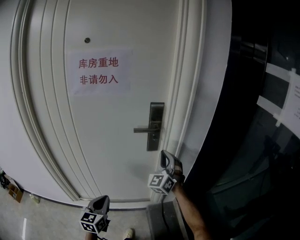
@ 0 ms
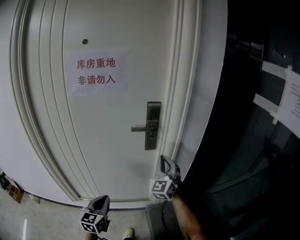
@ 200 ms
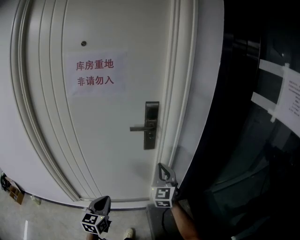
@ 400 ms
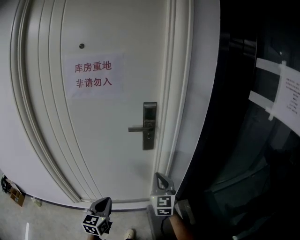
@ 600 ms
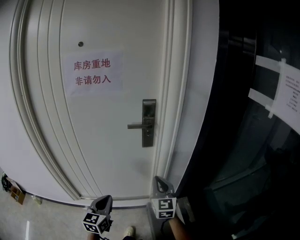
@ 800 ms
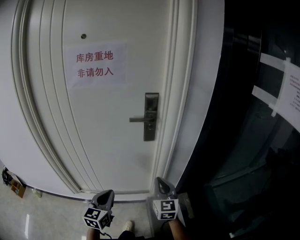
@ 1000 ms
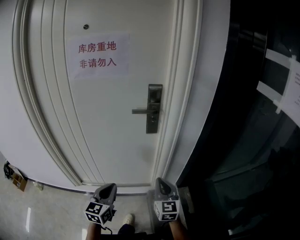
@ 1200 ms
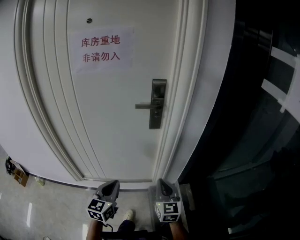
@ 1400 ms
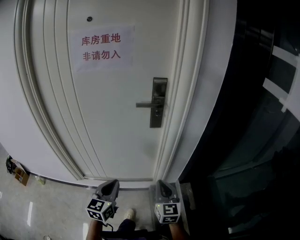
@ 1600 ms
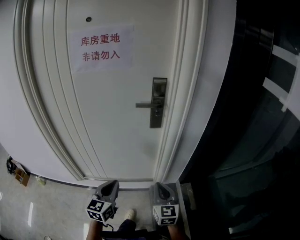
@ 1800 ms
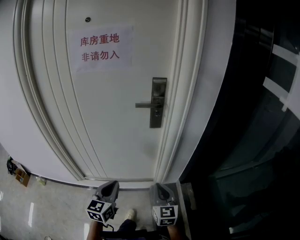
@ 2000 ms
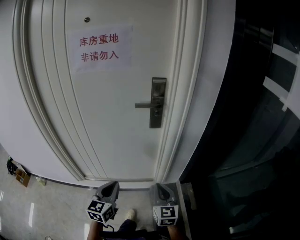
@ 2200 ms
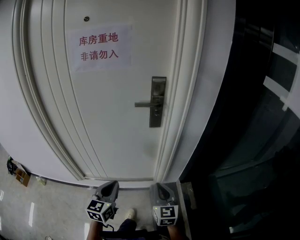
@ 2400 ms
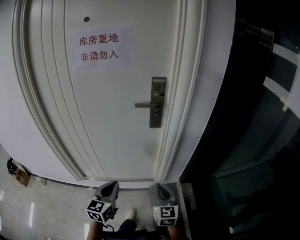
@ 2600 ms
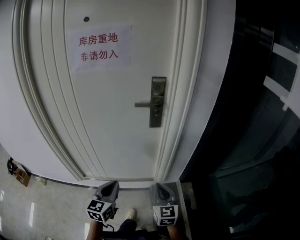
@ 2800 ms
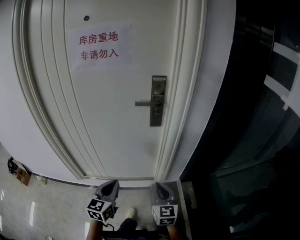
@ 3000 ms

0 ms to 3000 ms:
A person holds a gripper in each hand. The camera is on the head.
0 ms to 1600 ms: The right gripper is displaced backward and downward by about 25 cm, and twists approximately 50 degrees clockwise, seen from behind; the left gripper is displaced to the right by roughly 5 cm.
1600 ms to 3000 ms: There are only small adjustments of the grippers.

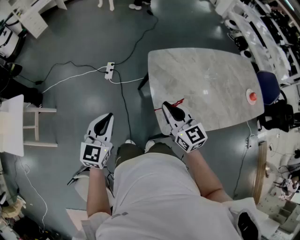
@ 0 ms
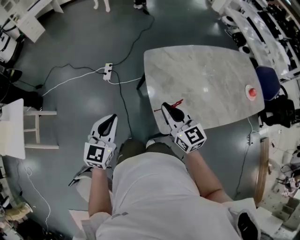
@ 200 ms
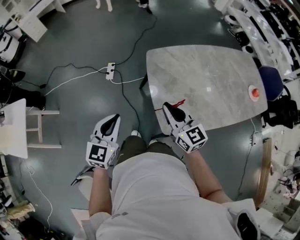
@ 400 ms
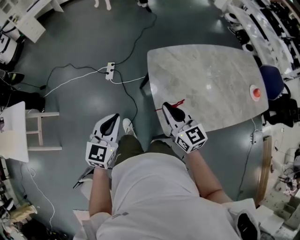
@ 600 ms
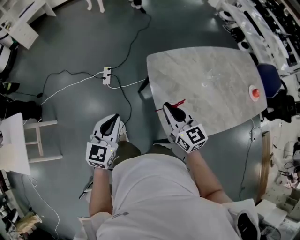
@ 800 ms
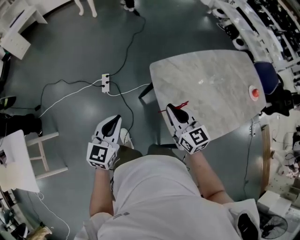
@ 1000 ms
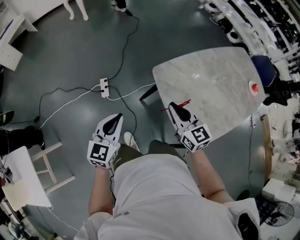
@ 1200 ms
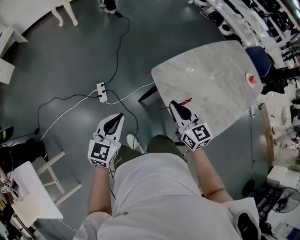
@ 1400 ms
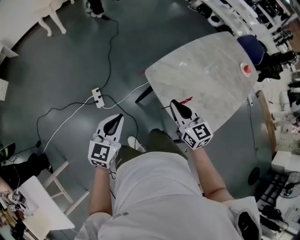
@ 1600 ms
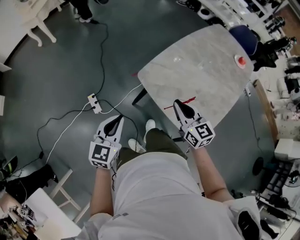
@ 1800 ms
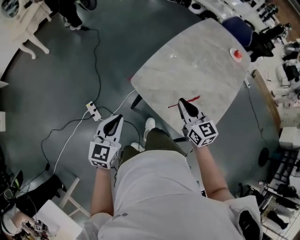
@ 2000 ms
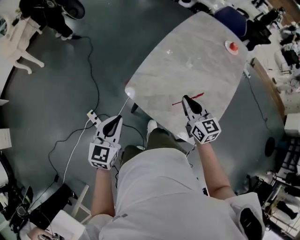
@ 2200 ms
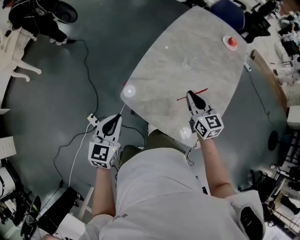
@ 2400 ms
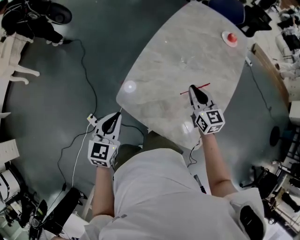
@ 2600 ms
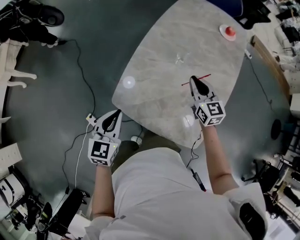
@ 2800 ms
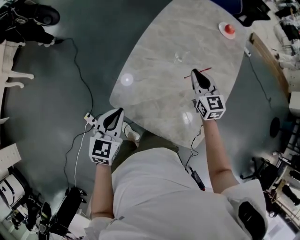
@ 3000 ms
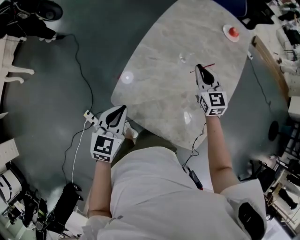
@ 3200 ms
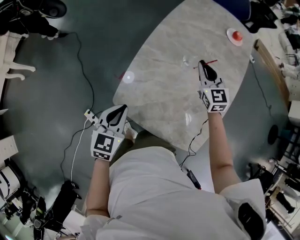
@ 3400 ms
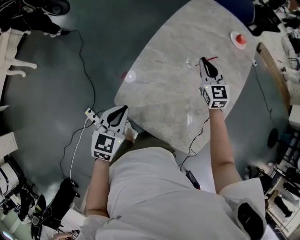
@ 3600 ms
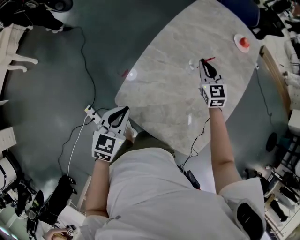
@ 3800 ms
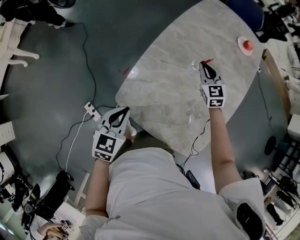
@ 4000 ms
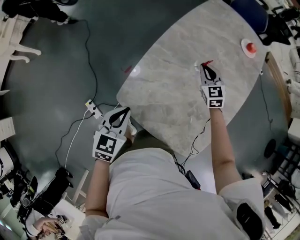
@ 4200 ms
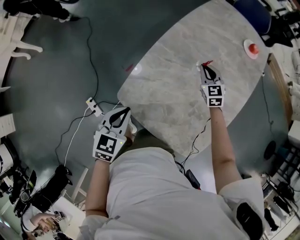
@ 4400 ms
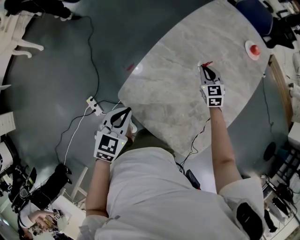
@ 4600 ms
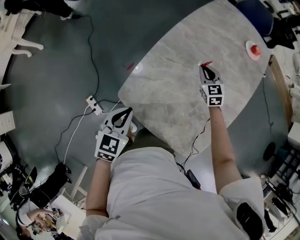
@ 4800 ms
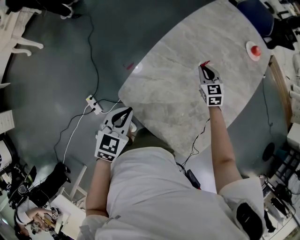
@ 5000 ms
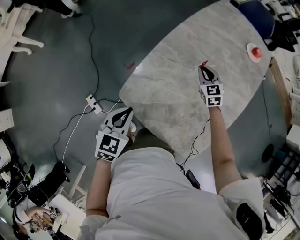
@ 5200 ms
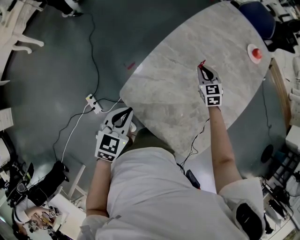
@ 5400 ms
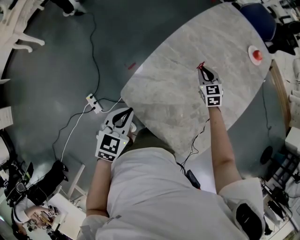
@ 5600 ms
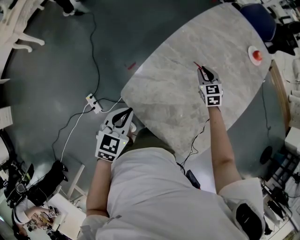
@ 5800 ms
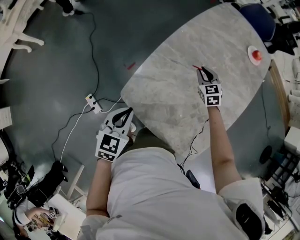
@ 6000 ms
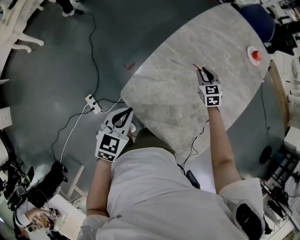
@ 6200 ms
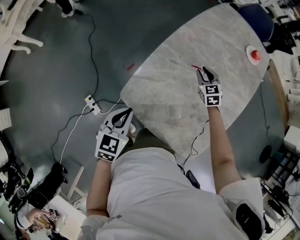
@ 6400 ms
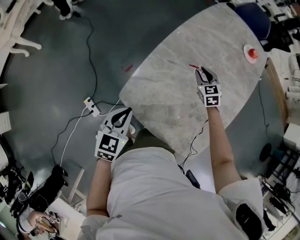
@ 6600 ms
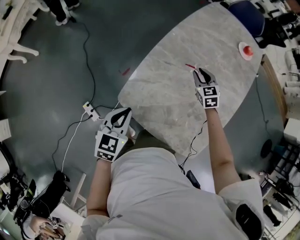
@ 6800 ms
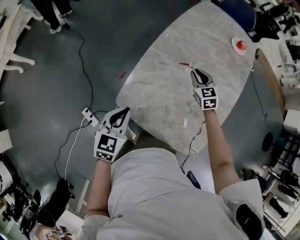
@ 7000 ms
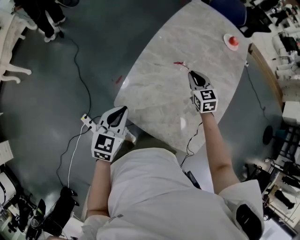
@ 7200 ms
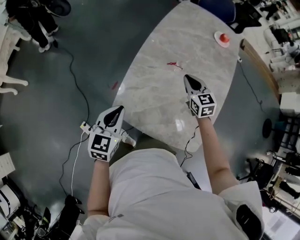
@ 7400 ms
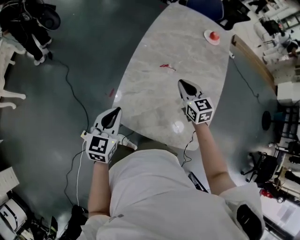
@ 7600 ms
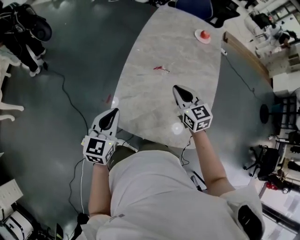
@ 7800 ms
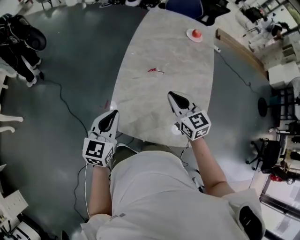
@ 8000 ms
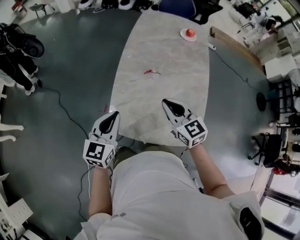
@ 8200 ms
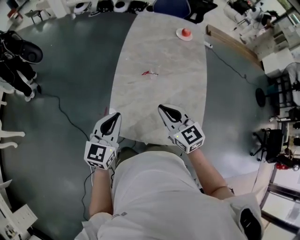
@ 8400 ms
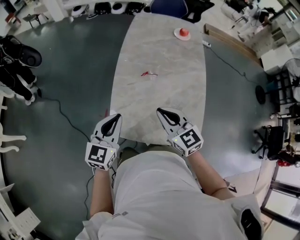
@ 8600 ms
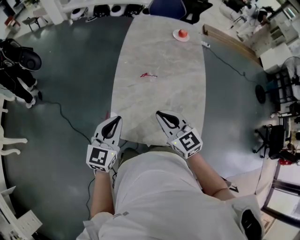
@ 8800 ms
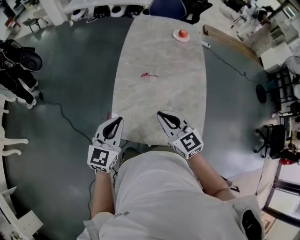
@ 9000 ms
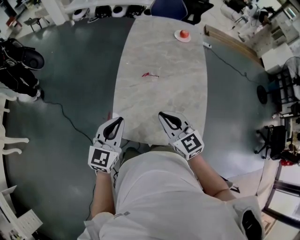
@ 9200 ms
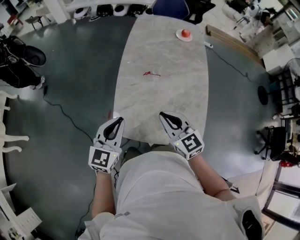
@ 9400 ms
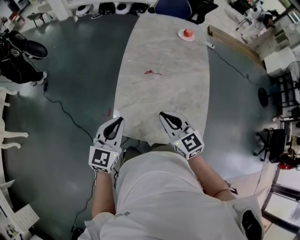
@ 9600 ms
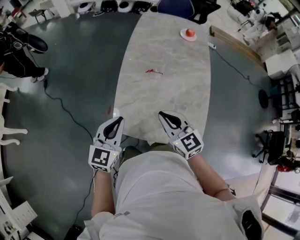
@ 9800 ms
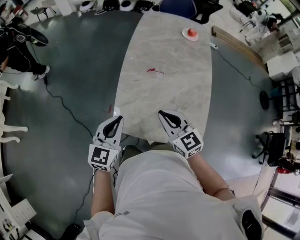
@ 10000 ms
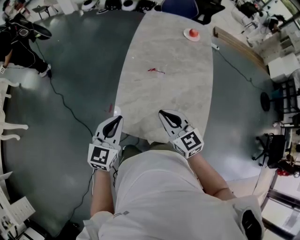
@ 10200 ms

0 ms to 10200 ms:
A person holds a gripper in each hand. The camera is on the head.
0 ms to 1400 ms: The right gripper shifts roughly 25 cm forward and to the left, and rotates about 20 degrees, while the left gripper is displaced forward by approximately 30 cm, and changes its angle by approximately 30 degrees.
1400 ms to 3000 ms: The right gripper changes place by about 40 cm, and turns by about 40 degrees, while the left gripper ends up roughly 35 cm from where it was, and changes its angle by roughly 30 degrees.
3000 ms to 4400 ms: The right gripper moves forward and downward, about 15 cm, and turns by some 20 degrees.
4400 ms to 5800 ms: There are only small adjustments of the grippers.
5800 ms to 7200 ms: The right gripper travels upward and backward by approximately 10 cm.
7200 ms to 8800 ms: The right gripper travels backward and upward by roughly 25 cm, while the left gripper goes some 10 cm upward, and rotates some 30 degrees.
8800 ms to 10200 ms: The grippers make only small movements.

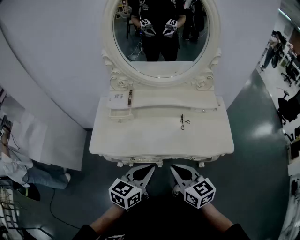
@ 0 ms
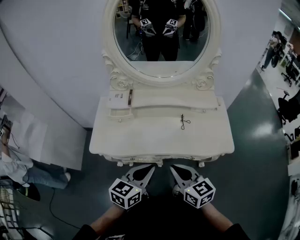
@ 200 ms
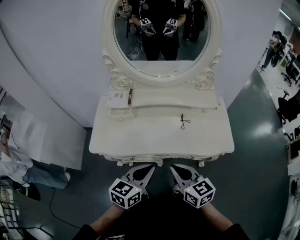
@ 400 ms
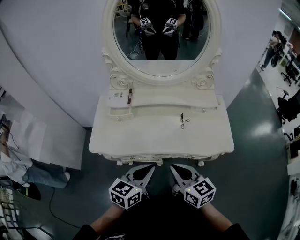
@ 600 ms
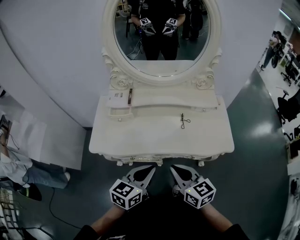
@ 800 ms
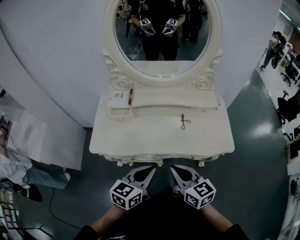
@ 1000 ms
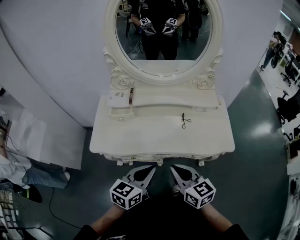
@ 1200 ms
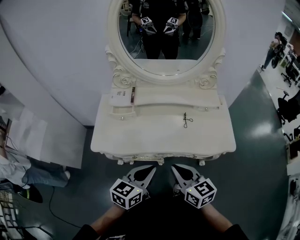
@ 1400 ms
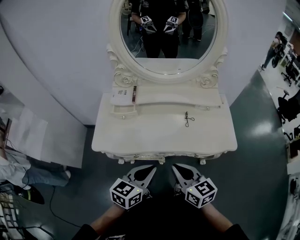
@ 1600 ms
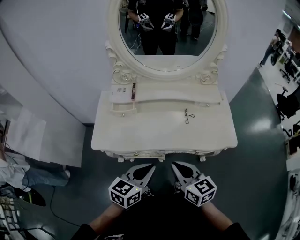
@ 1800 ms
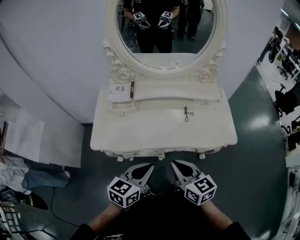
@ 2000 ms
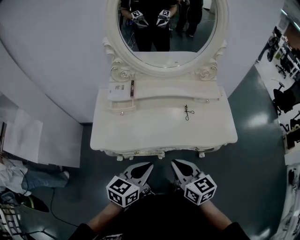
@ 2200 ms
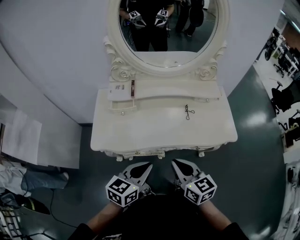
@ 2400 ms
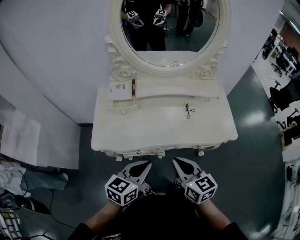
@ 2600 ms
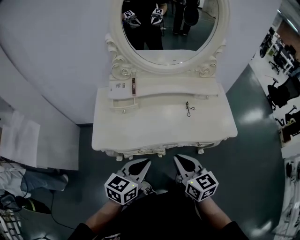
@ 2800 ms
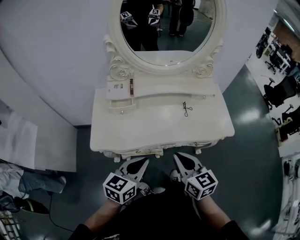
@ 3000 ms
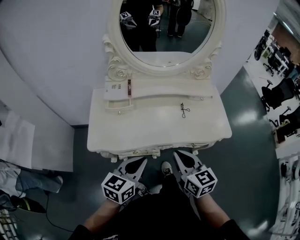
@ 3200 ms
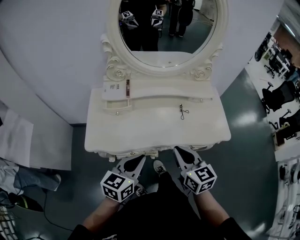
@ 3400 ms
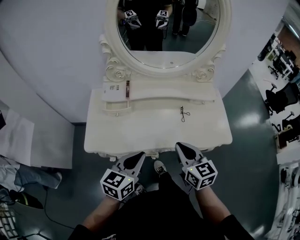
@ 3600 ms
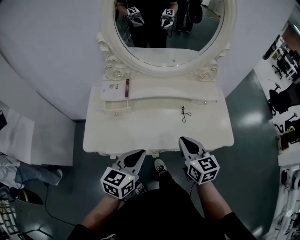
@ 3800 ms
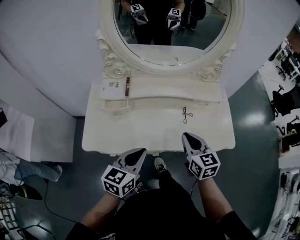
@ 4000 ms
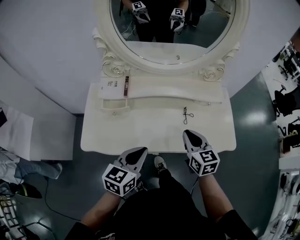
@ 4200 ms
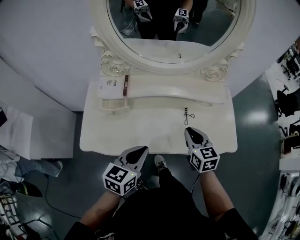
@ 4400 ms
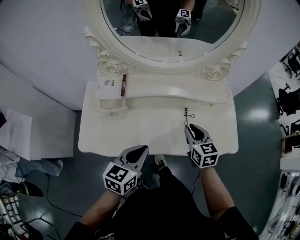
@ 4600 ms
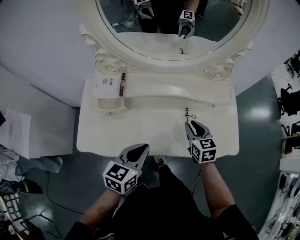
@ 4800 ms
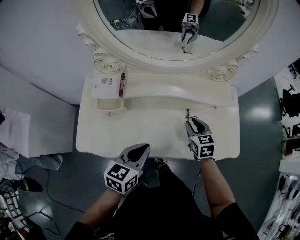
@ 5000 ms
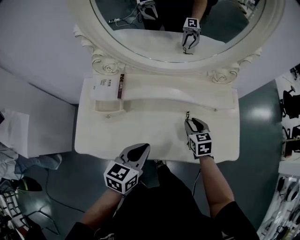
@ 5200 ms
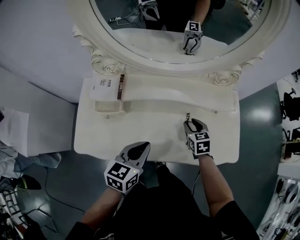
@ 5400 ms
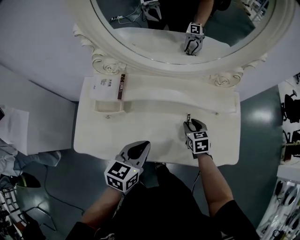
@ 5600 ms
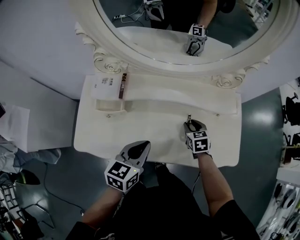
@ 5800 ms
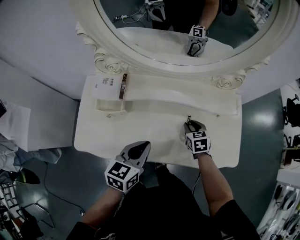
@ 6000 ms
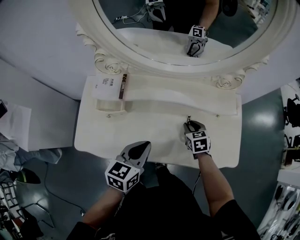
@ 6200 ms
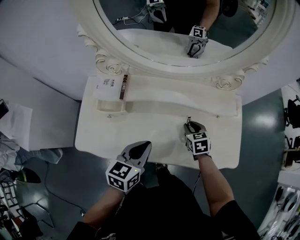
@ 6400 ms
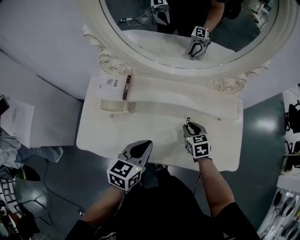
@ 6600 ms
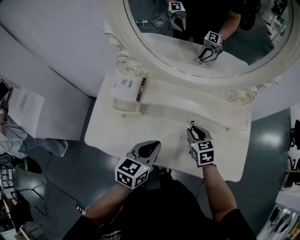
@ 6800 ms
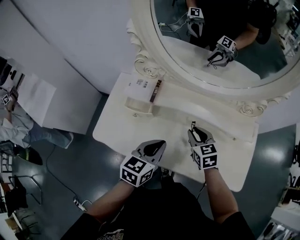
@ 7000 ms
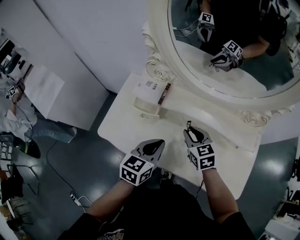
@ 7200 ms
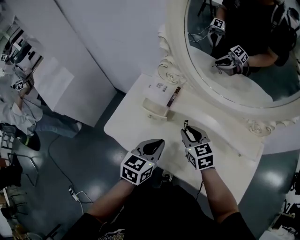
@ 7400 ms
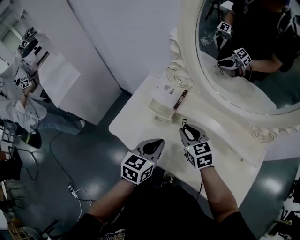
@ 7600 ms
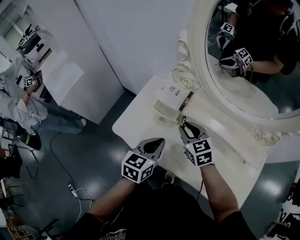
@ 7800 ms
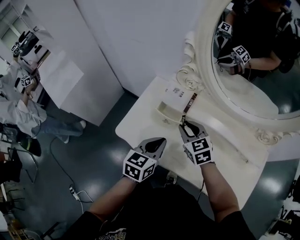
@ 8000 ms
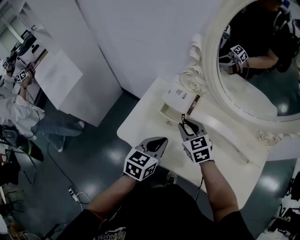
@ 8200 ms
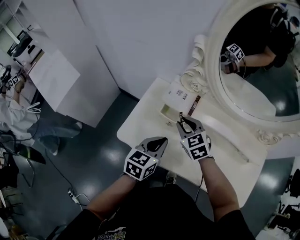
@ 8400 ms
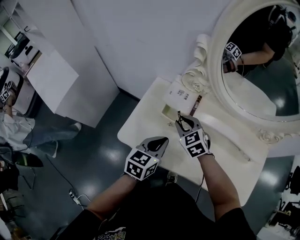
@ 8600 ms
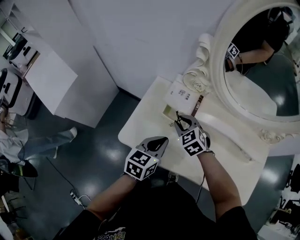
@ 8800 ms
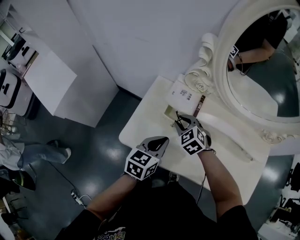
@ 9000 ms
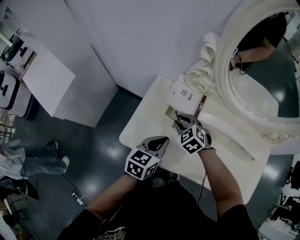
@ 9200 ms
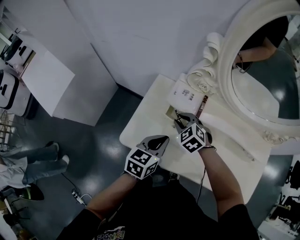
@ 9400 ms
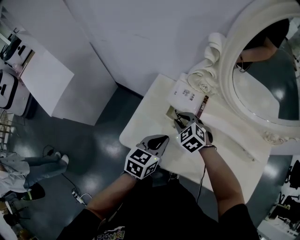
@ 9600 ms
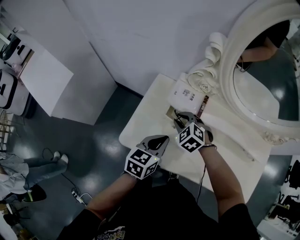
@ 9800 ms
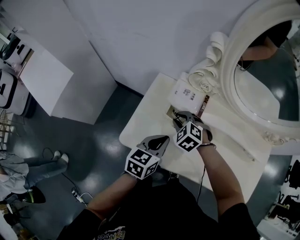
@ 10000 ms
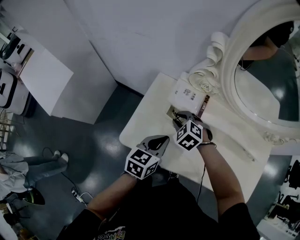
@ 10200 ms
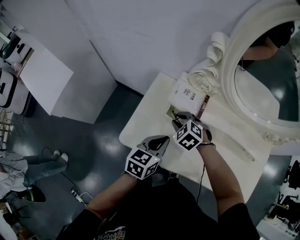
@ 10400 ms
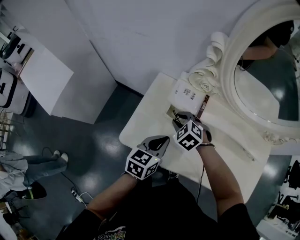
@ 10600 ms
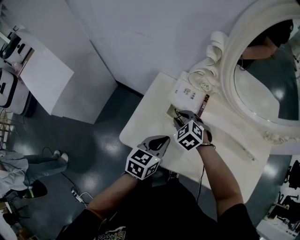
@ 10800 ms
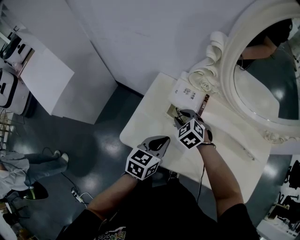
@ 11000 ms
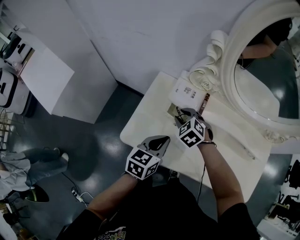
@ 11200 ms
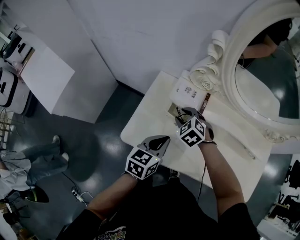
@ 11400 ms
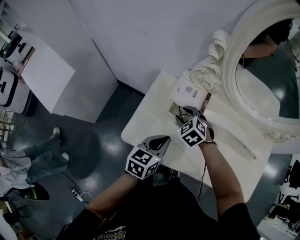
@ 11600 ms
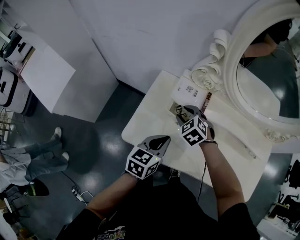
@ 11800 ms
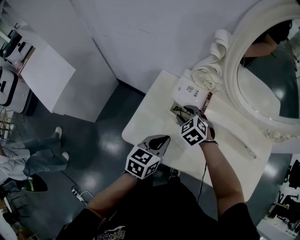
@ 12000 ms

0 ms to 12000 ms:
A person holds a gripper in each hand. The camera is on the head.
0 ms to 1600 ms: There are only small adjustments of the grippers.
1600 ms to 3000 ms: The left gripper moves to the left, roughly 10 cm.
3000 ms to 4400 ms: The right gripper is displaced forward and to the right by some 25 cm. The left gripper heads forward, covering roughly 15 cm.
4400 ms to 6000 ms: The right gripper moves downward and forward, approximately 20 cm, rotates some 20 degrees, and opens up. The left gripper is displaced forward by approximately 10 cm.
6000 ms to 7600 ms: The left gripper changes place by about 10 cm, and changes its angle by roughly 20 degrees; the right gripper shifts by roughly 30 cm, and rotates roughly 40 degrees.
7600 ms to 9000 ms: The right gripper is displaced to the left and forward by approximately 15 cm, and changes its angle by some 30 degrees. The left gripper goes approximately 10 cm to the left.
9000 ms to 12000 ms: The grippers make only small movements.
